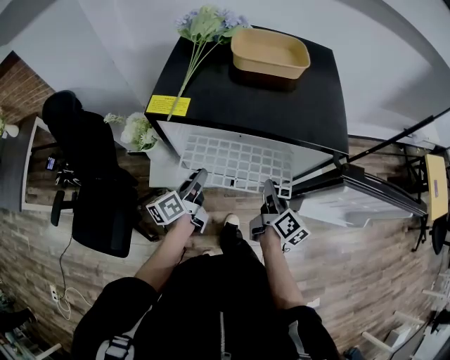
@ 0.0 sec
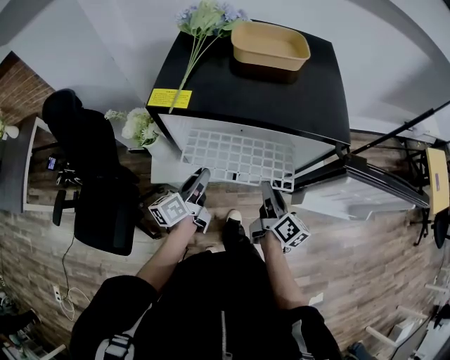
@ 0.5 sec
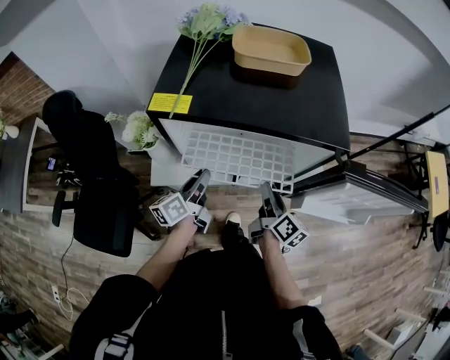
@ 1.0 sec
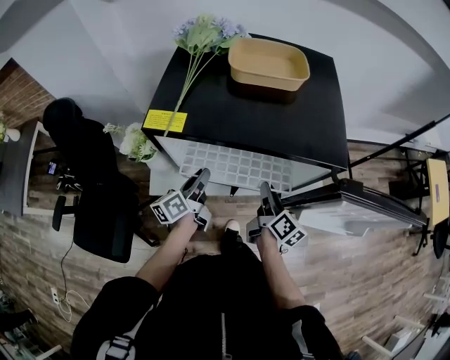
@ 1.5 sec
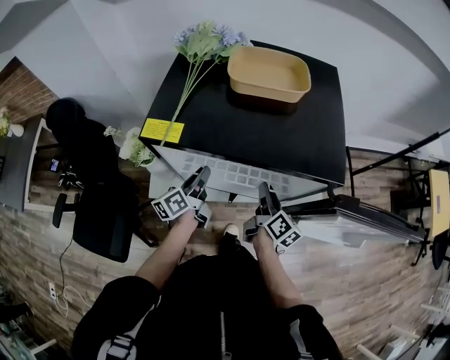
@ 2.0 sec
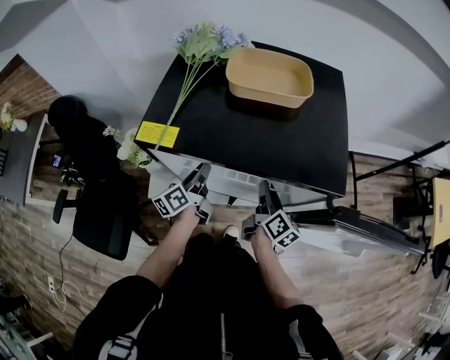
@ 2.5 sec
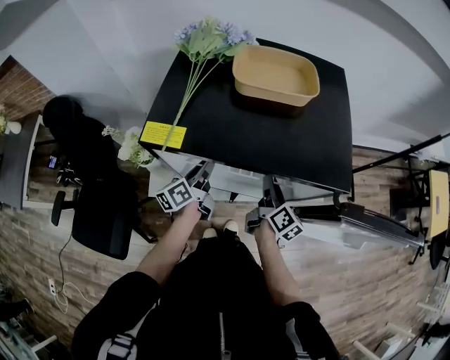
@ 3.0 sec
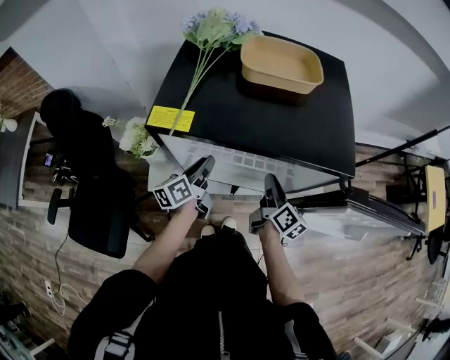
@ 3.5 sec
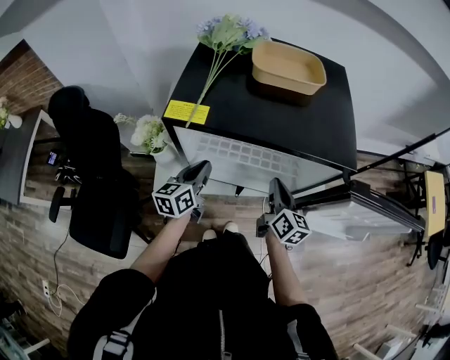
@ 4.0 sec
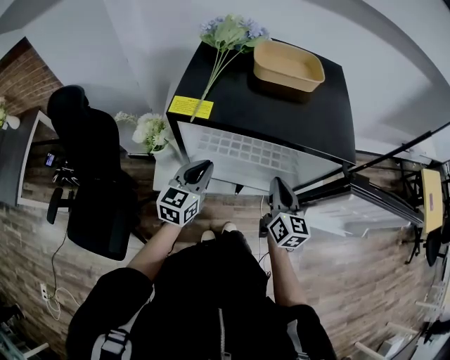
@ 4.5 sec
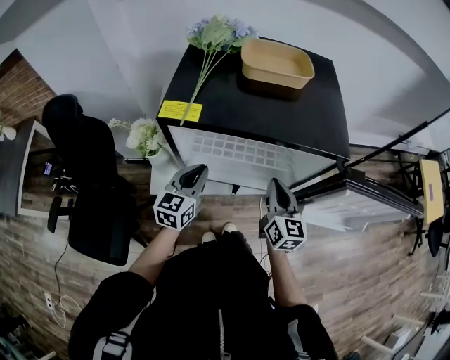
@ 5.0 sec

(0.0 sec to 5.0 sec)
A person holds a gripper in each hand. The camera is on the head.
0.0 sec - 2.5 sec: Both grippers move forward, some 10 cm.
2.5 sec - 5.0 sec: Both grippers move backward and upward, roughly 10 cm. The left gripper rotates around the line of its fingers by about 50 degrees, clockwise from behind. The right gripper twists approximately 40 degrees counterclockwise, seen from behind, and closes its fingers.

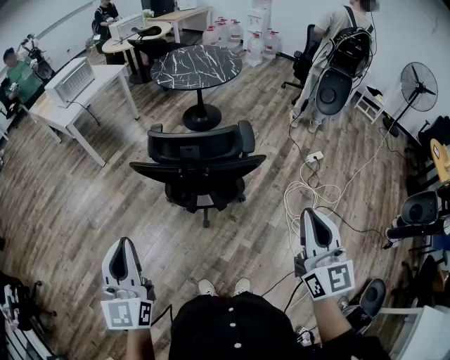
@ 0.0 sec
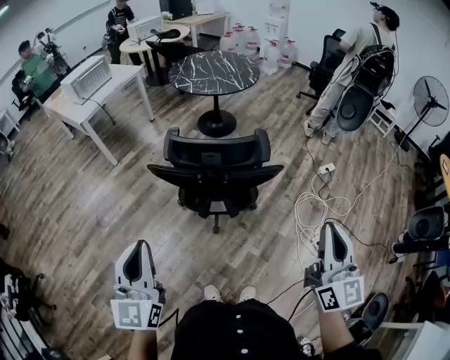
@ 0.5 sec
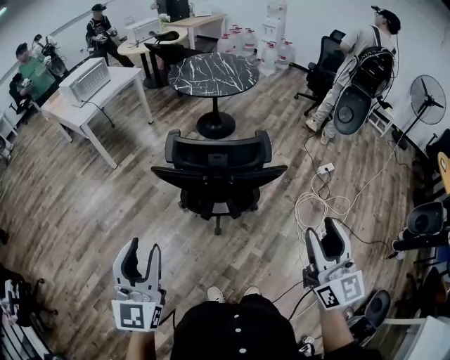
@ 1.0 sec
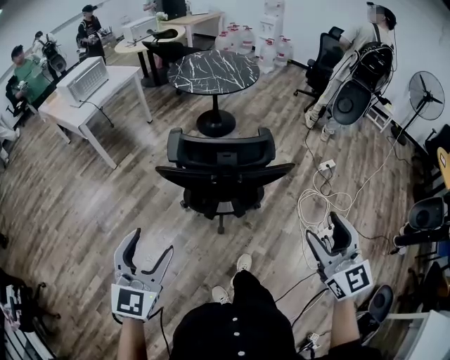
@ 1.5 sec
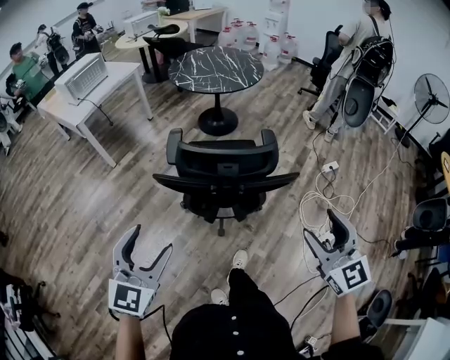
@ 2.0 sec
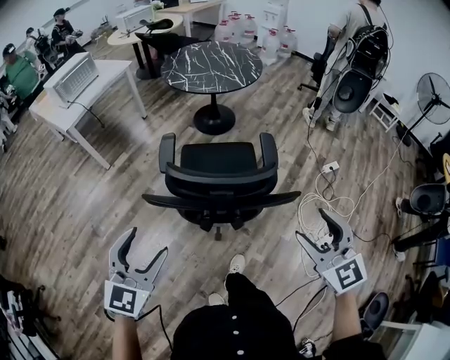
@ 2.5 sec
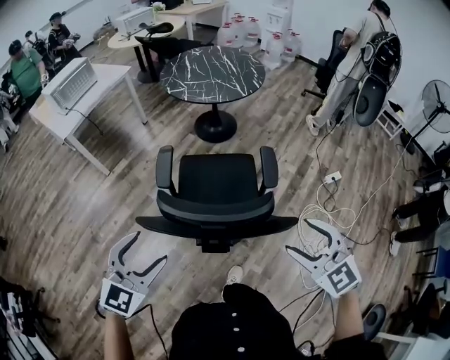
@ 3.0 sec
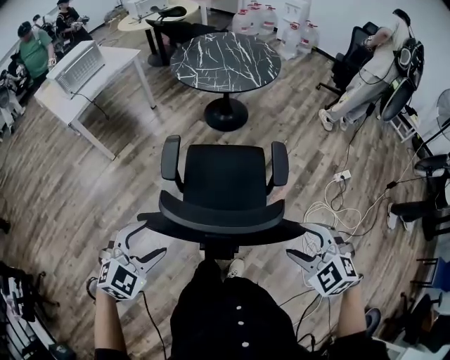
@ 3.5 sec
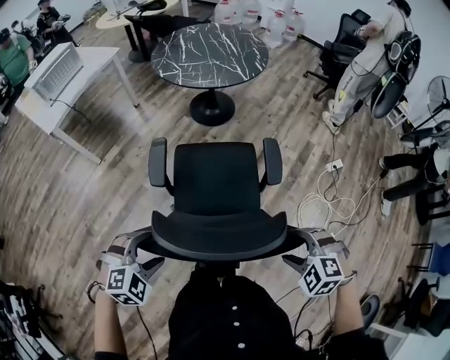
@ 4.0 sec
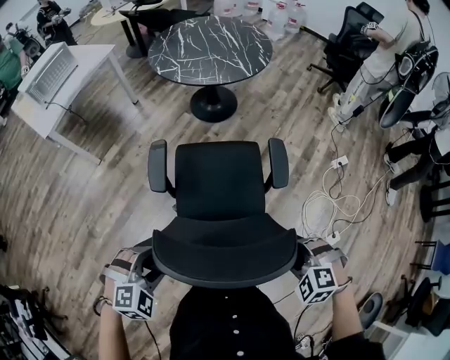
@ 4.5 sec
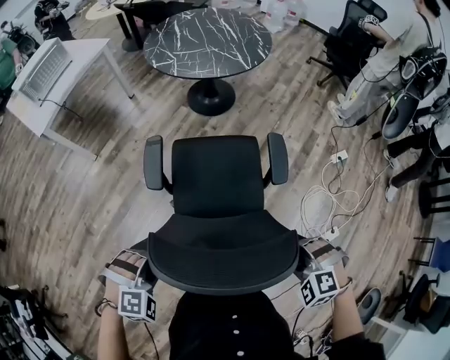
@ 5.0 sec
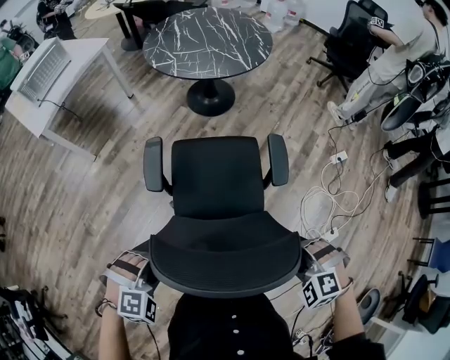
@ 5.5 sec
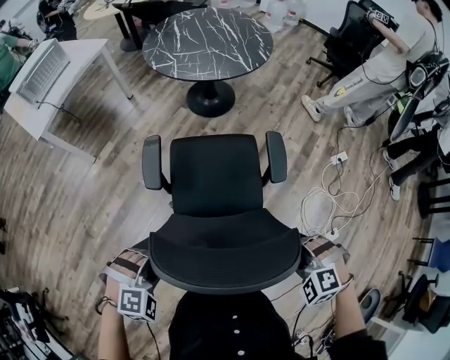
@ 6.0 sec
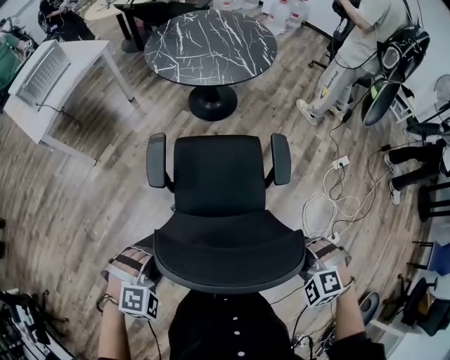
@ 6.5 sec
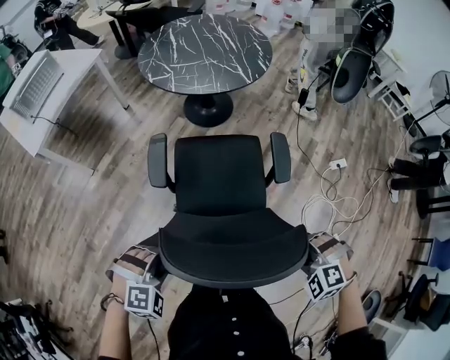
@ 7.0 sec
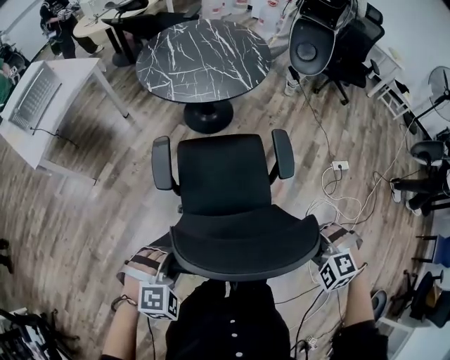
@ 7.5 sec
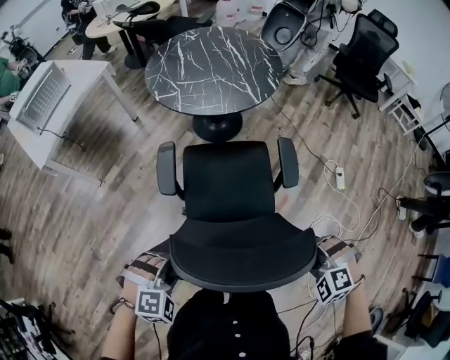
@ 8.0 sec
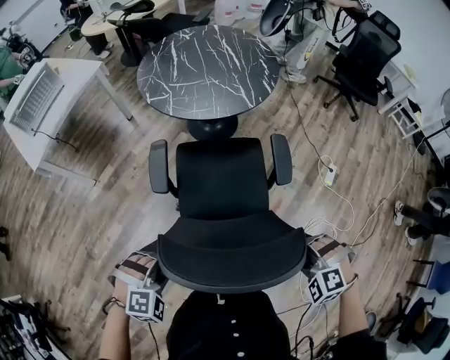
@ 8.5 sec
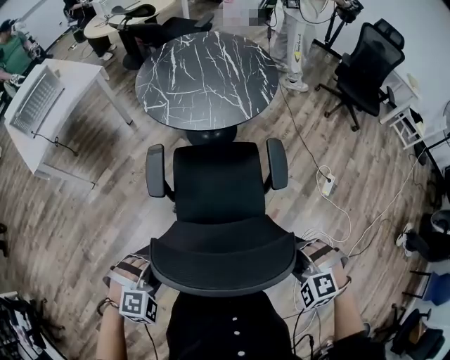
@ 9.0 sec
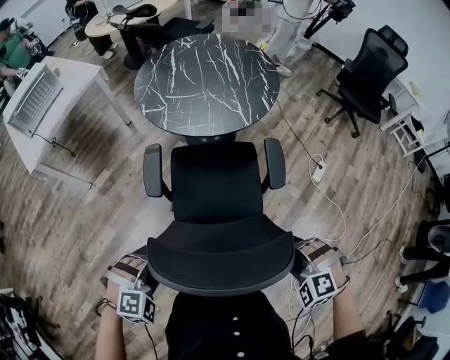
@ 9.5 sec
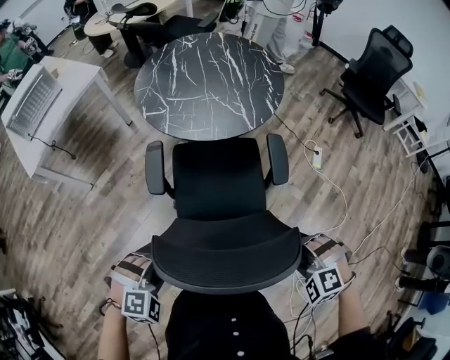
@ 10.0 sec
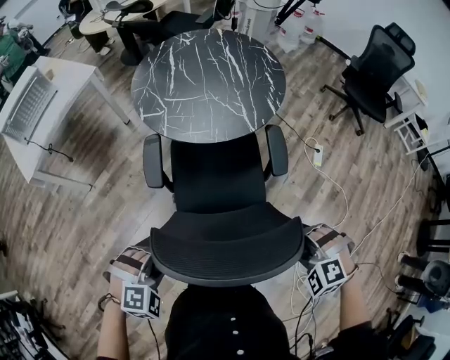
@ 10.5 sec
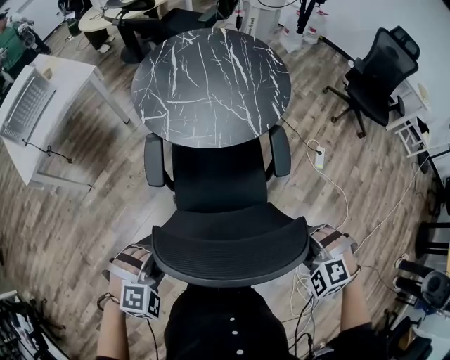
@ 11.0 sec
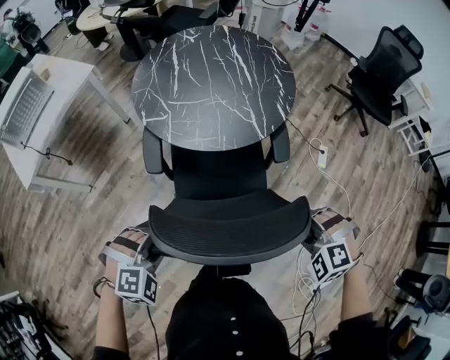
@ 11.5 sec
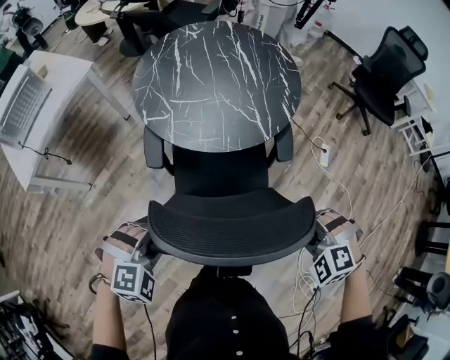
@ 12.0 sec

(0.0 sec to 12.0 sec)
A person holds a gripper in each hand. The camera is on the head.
0.0 sec - 2.0 sec: Both grippers travel together forward and downward, roughly 10 cm. The right gripper rotates roughly 20 degrees, and opens its fingers. Meanwhile the left gripper swivels about 30 degrees, and opens up.
2.0 sec - 4.0 sec: The left gripper goes roughly 25 cm forward and downward, and points its fingers approximately 40 degrees further downward; the right gripper moves downward and forward, approximately 25 cm, and points its fingers roughly 50 degrees further downward.
4.0 sec - 6.0 sec: The left gripper closes its fingers. The right gripper ends up roughly 5 cm from where it was, and closes.
6.0 sec - 8.0 sec: The two grippers go roughly 15 cm forward.
8.0 sec - 10.0 sec: The grippers both shift forward by about 15 cm.
10.0 sec - 12.0 sec: The grippers both shift forward by roughly 15 cm.

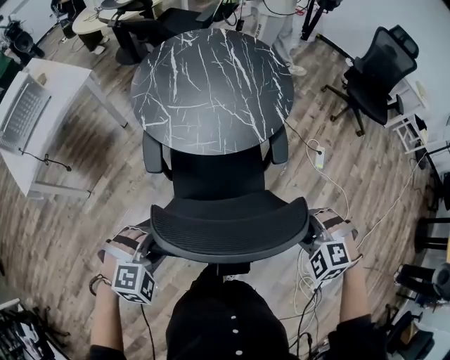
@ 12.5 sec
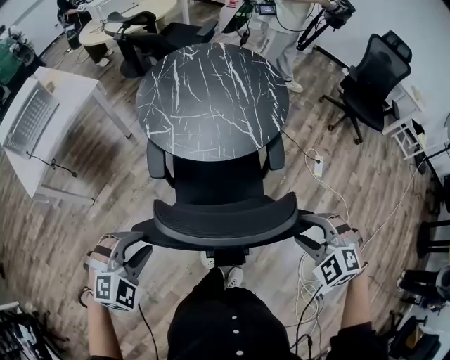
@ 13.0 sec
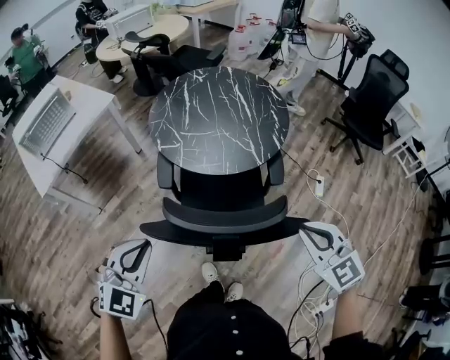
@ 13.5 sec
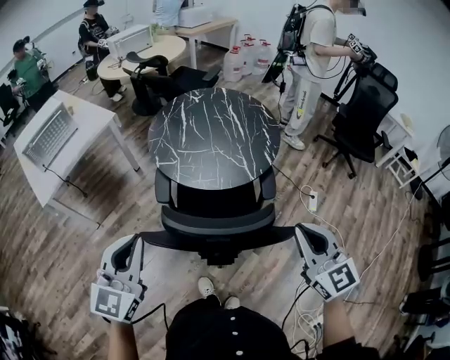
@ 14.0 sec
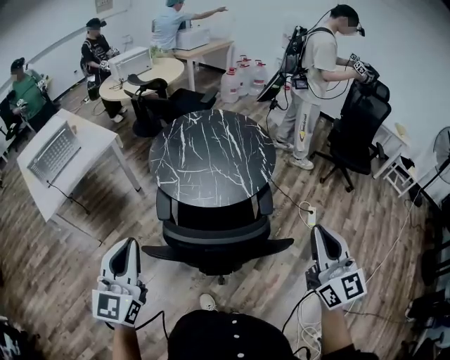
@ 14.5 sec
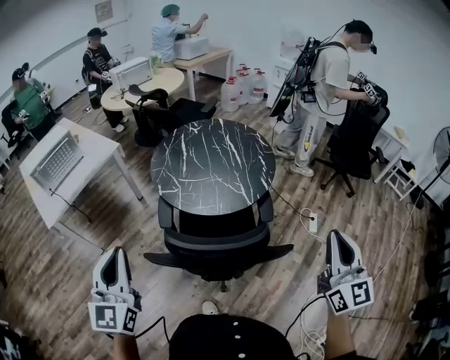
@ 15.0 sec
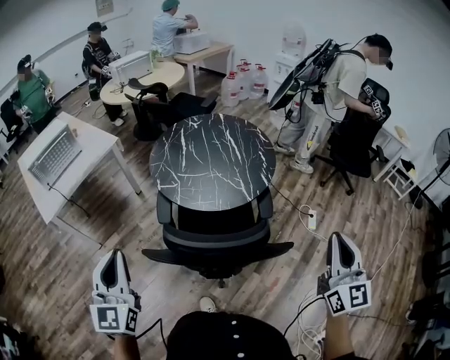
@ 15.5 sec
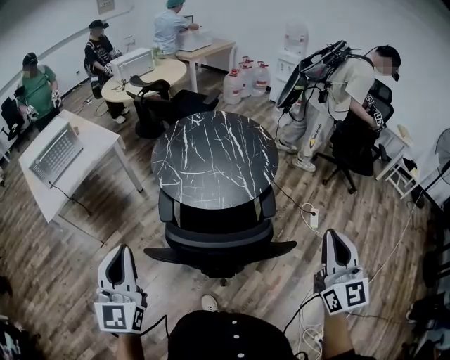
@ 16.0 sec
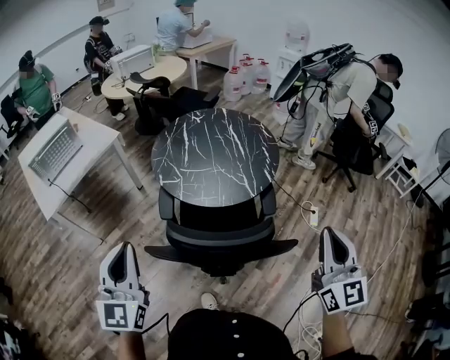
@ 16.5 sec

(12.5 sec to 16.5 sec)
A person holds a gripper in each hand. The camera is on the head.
12.5 sec - 14.5 sec: Both grippers move upward, some 30 cm. The right gripper tilts its fingers about 70 degrees upward, and closes up; the left gripper points its fingers roughly 60 degrees further upward, and closes its fingers.
14.5 sec - 16.5 sec: The grippers move only a little.

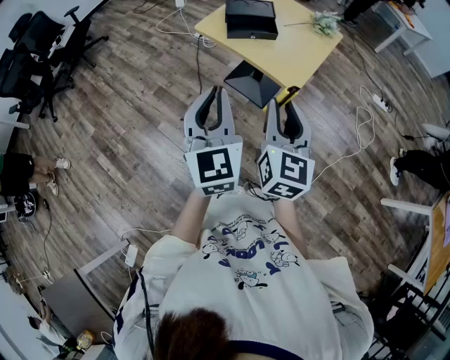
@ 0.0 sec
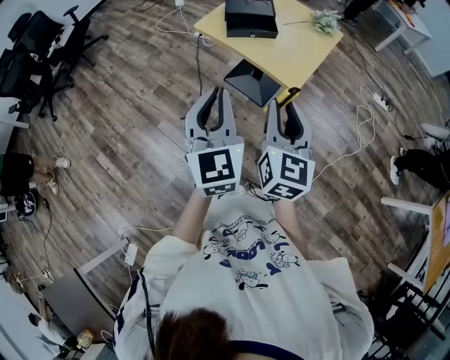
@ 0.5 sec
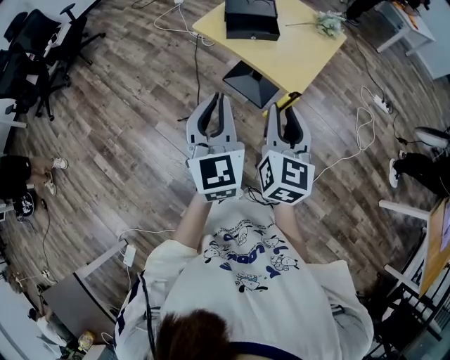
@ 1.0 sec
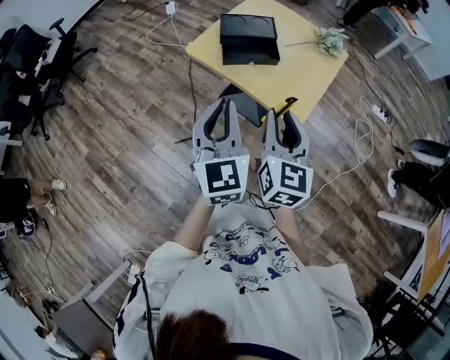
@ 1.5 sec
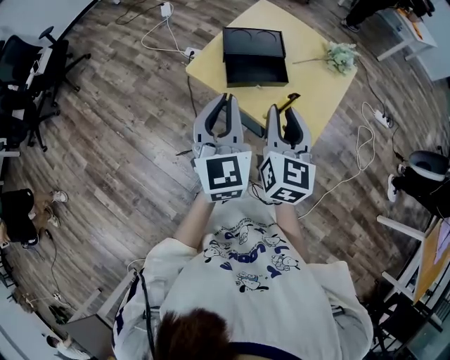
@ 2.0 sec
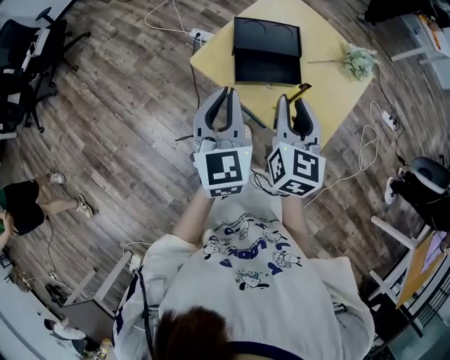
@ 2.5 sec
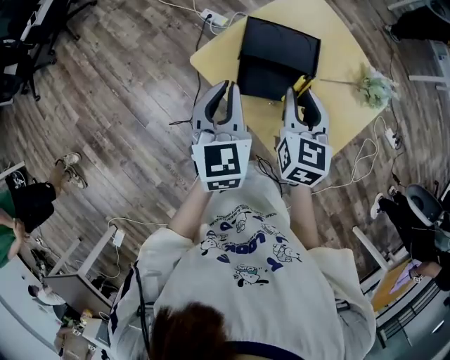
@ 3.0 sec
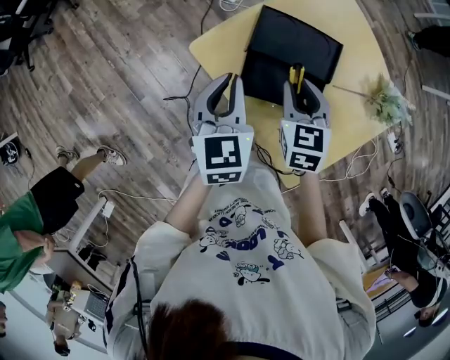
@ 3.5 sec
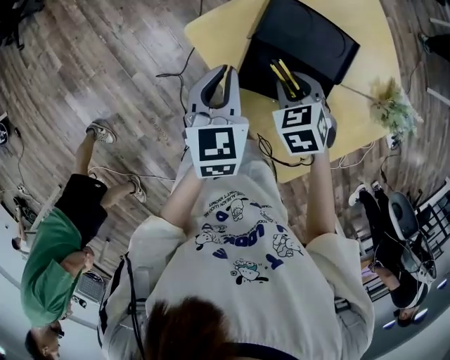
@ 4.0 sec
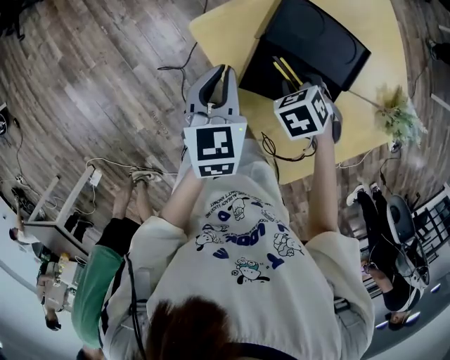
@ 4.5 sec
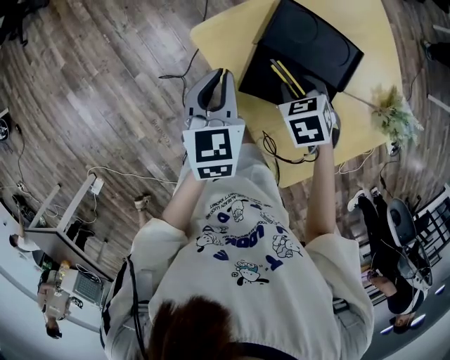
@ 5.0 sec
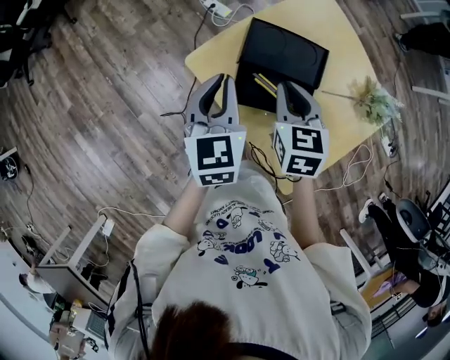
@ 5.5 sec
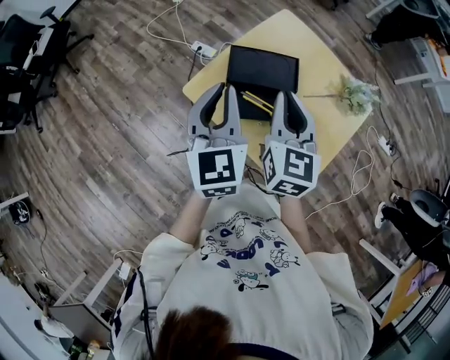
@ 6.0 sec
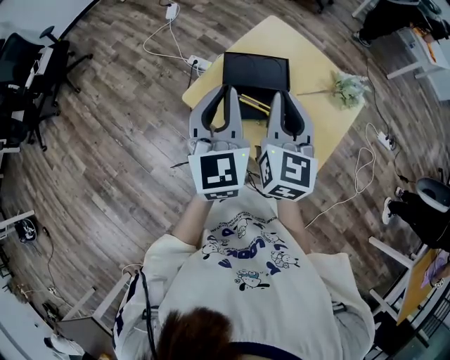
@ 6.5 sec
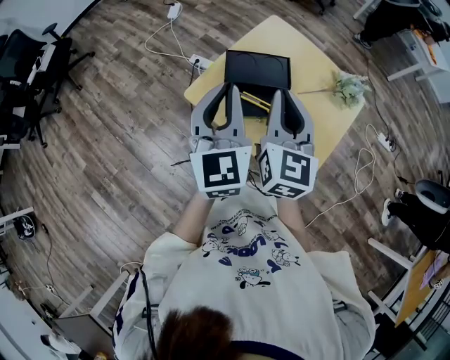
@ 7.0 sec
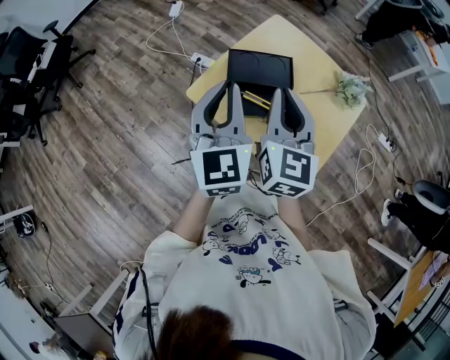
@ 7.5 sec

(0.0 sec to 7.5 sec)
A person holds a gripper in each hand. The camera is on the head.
0.0 sec - 2.0 sec: Both grippers travel together forward, approximately 30 cm.
2.0 sec - 4.0 sec: The two grippers go about 25 cm downward. The left gripper changes its angle by about 30 degrees; the right gripper tilts its fingers roughly 50 degrees downward.
4.0 sec - 5.5 sec: The grippers both shift upward by about 10 cm. The right gripper changes its angle by some 40 degrees.
5.5 sec - 7.5 sec: Both grippers move upward and backward, roughly 15 cm. The right gripper tilts its fingers roughly 30 degrees upward. Meanwhile the left gripper swivels approximately 20 degrees.
